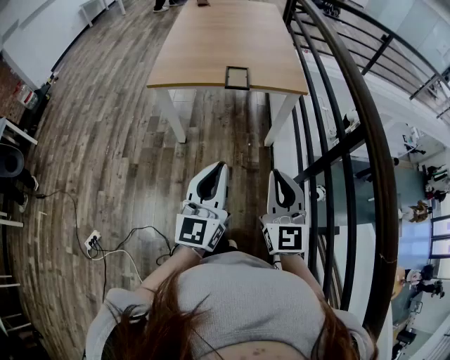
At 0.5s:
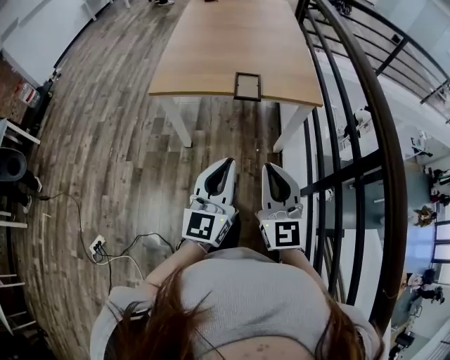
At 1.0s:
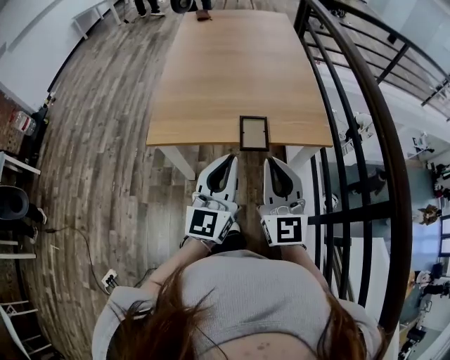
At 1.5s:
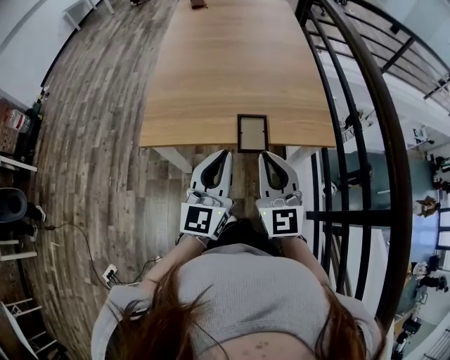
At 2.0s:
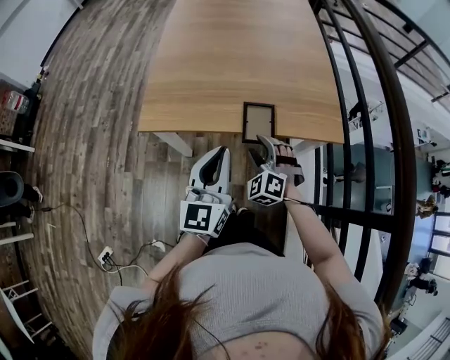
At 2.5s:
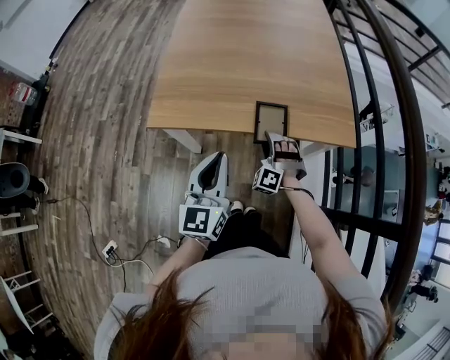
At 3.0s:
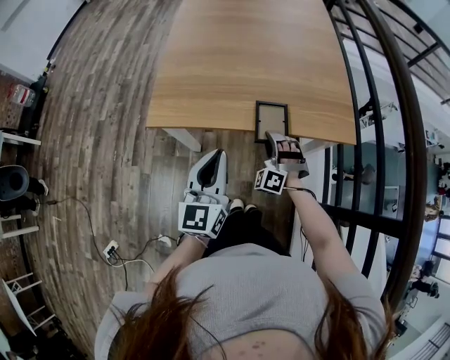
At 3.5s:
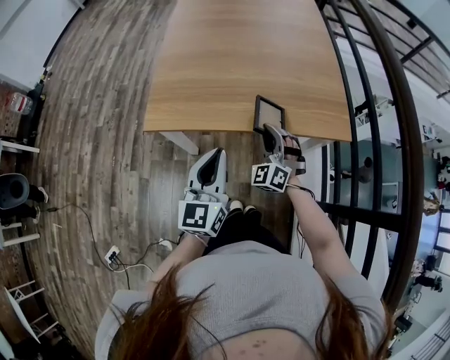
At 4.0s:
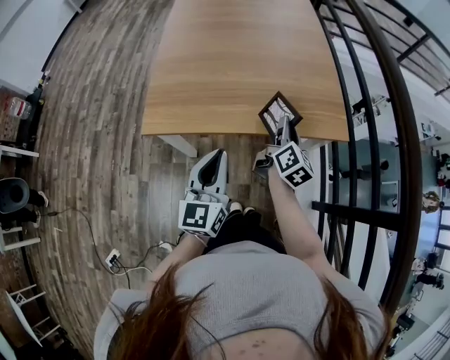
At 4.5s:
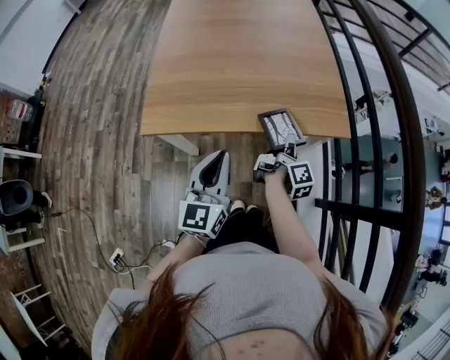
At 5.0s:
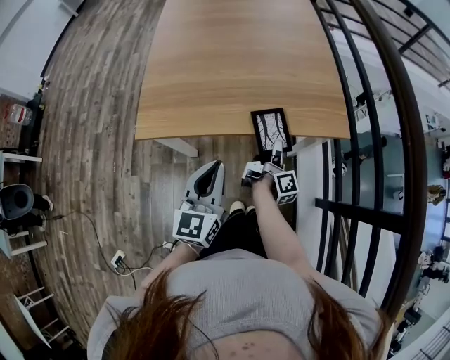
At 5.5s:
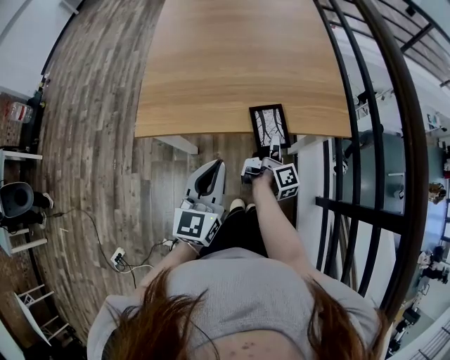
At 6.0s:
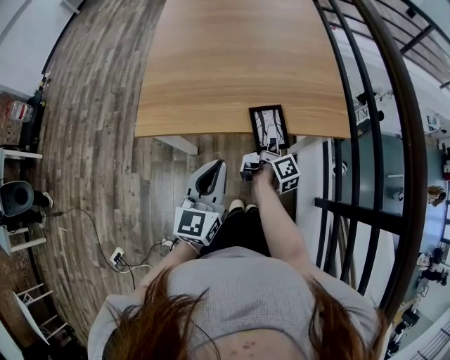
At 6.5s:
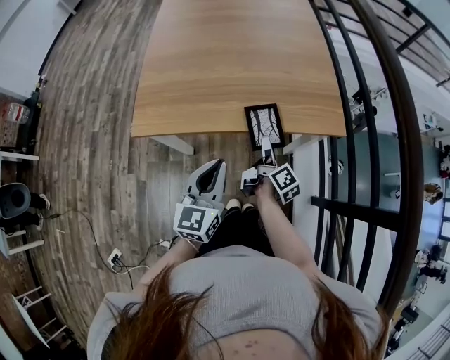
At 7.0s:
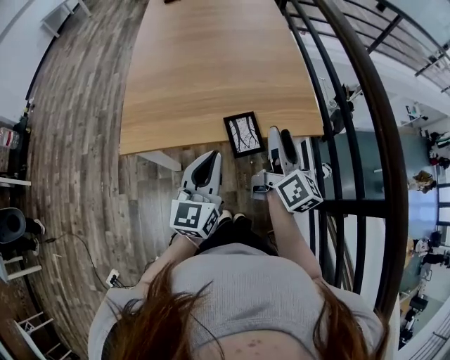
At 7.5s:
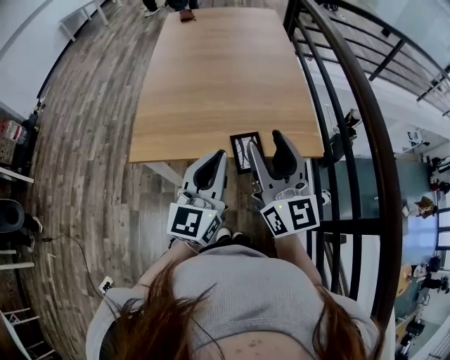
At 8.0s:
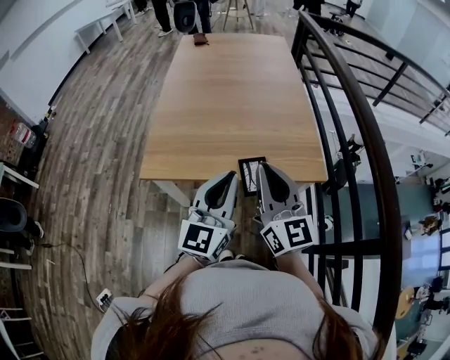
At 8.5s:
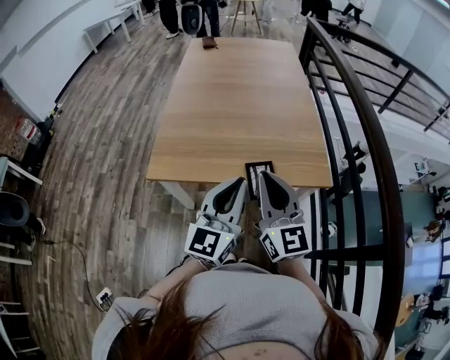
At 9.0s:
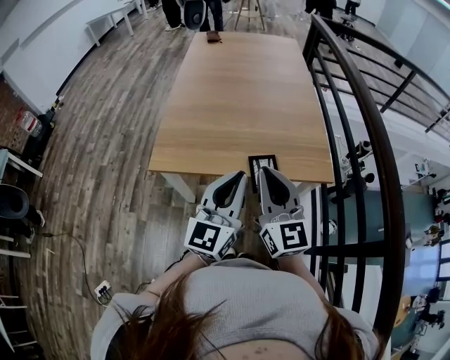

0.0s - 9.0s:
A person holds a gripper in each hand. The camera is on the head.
0.0s - 2.0s: The two grippers travel together, forward, roughly 40 cm. The right gripper shifts some 20 cm downward, angles its fingers downward, by approximately 40 degrees, and opens up.
2.0s - 4.5s: The right gripper swings up and down, some 15 cm each way, with 2 reversals, rolls clockwise, seen from behind, by approximately 150 degrees, and closes.
4.5s - 7.0s: The left gripper shifts some 5 cm to the right, while the right gripper moves upward, approximately 15 cm, rotates about 40 degrees, and opens its fingers.
7.0s - 9.0s: The left gripper shifts about 10 cm upward, while the right gripper is displaced to the left, upward and backward by roughly 20 cm, rotates around the line of its fingers by roughly 40 degrees, counterclockwise from behind, and closes up.

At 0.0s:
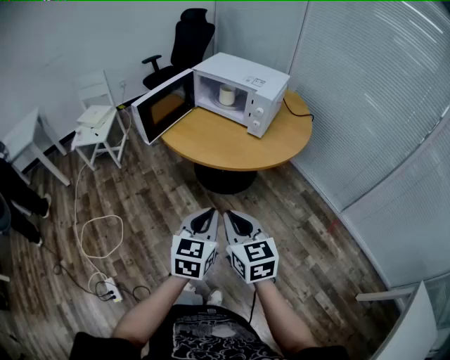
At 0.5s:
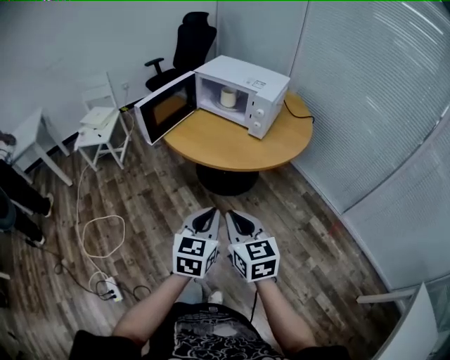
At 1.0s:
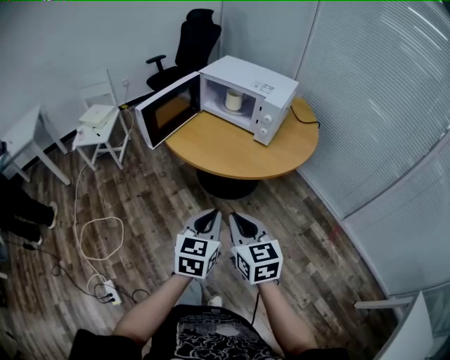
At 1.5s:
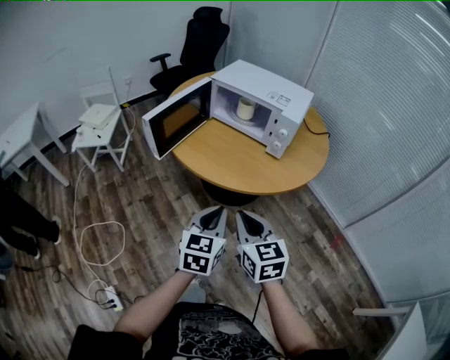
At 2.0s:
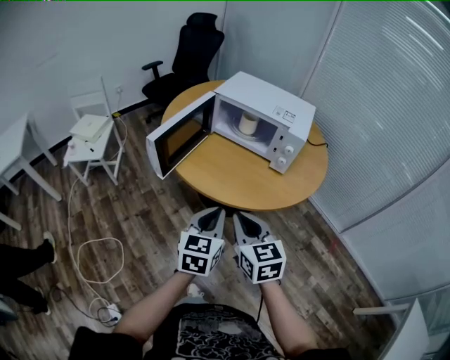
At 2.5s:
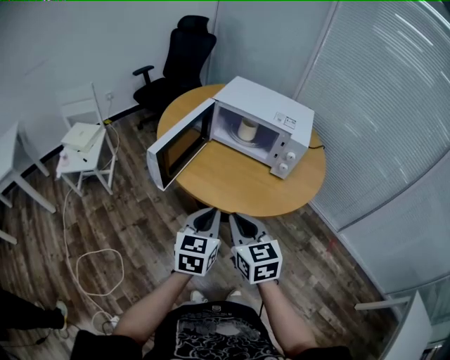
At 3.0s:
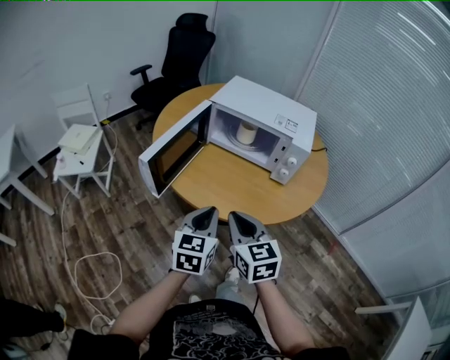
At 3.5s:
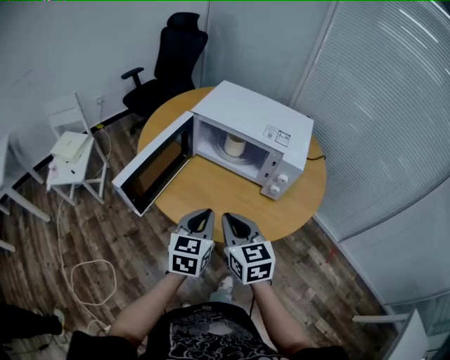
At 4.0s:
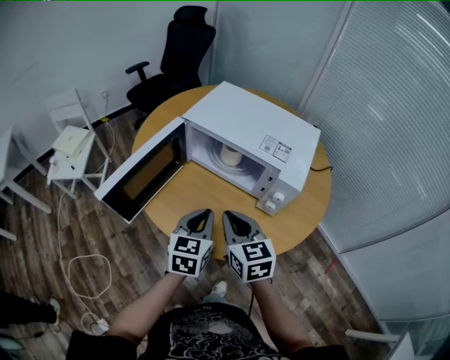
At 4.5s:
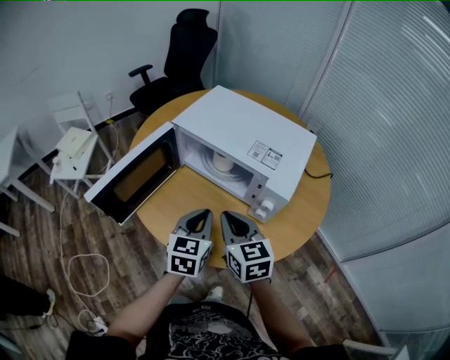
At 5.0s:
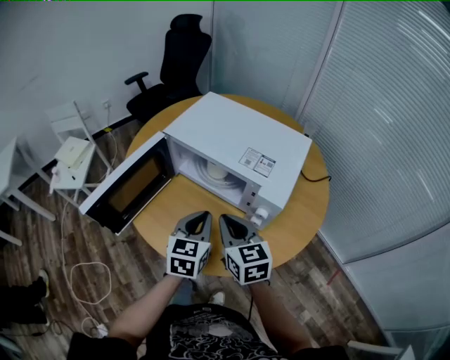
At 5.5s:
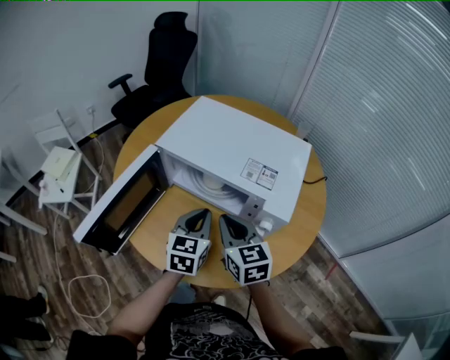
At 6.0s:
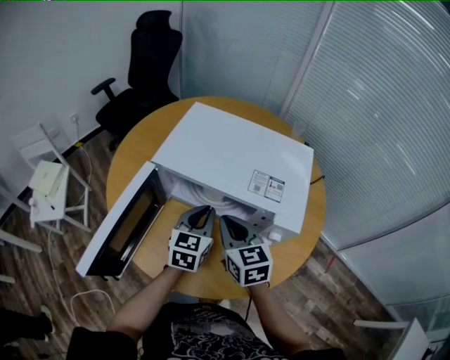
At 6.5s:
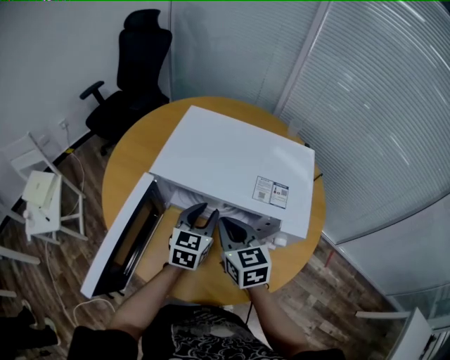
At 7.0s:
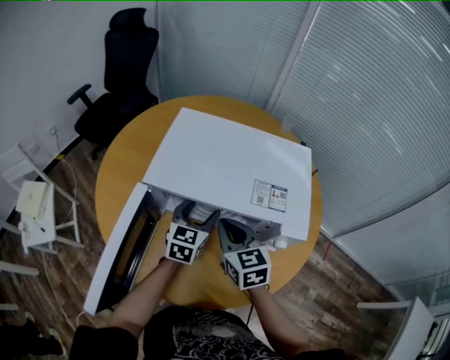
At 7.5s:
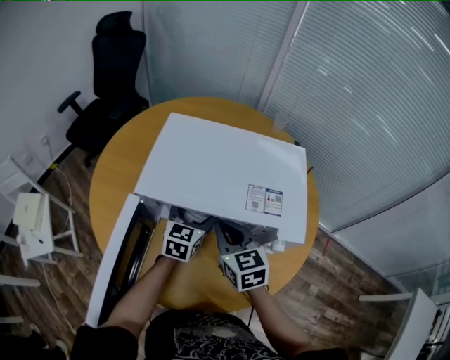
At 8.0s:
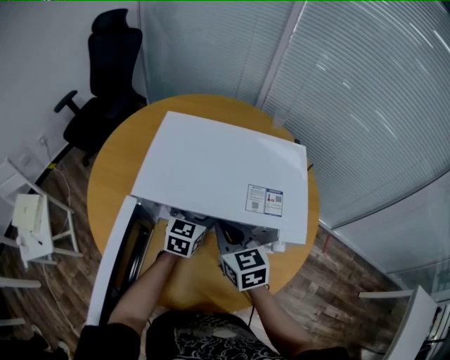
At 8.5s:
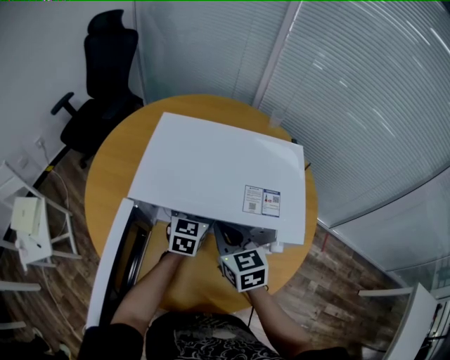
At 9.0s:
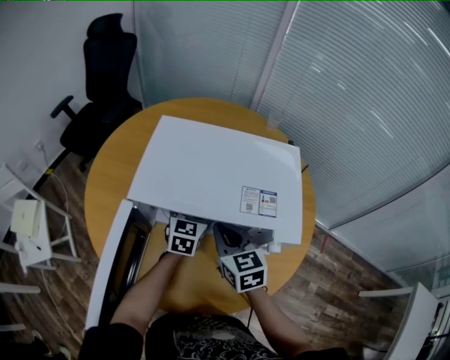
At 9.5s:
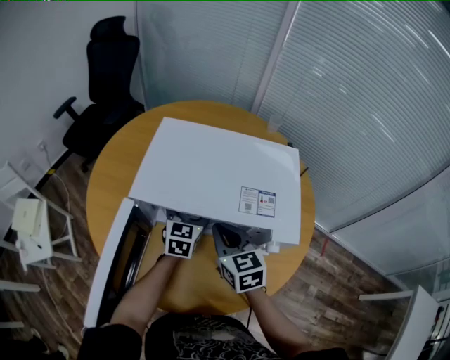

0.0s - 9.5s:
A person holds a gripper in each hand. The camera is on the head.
0.0s - 2.0s: Both grippers move forward and to the left, about 20 cm.
2.0s - 4.0s: Both grippers travel together forward, roughly 25 cm.
4.0s - 5.5s: The right gripper heads forward, covering about 10 cm. The left gripper travels forward and to the right by approximately 10 cm.
5.5s - 7.5s: The right gripper is displaced forward by some 10 cm. The left gripper goes roughly 15 cm forward, turns by about 20 degrees, and opens up.
7.5s - 9.5s: There are only small adjustments of the grippers.

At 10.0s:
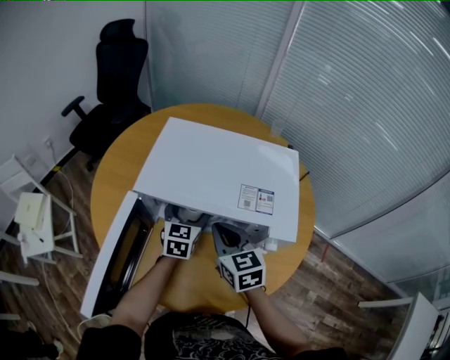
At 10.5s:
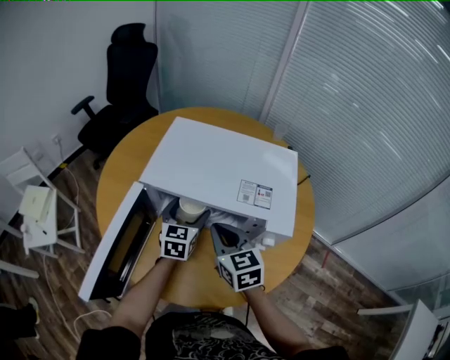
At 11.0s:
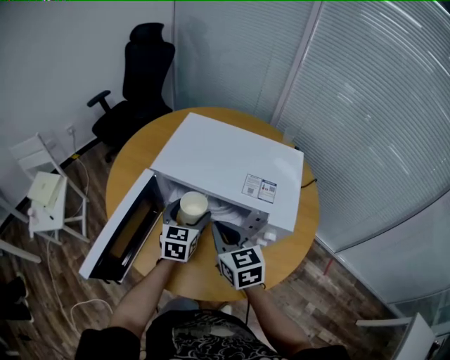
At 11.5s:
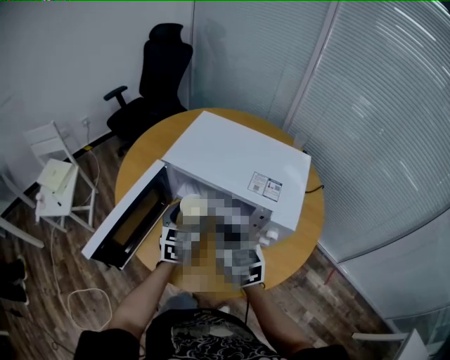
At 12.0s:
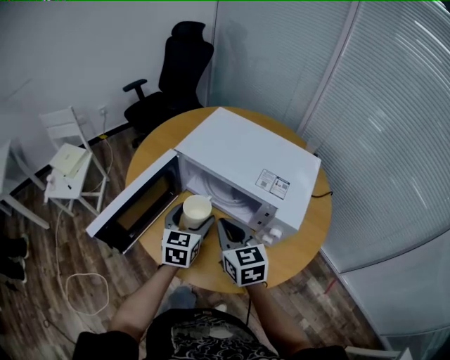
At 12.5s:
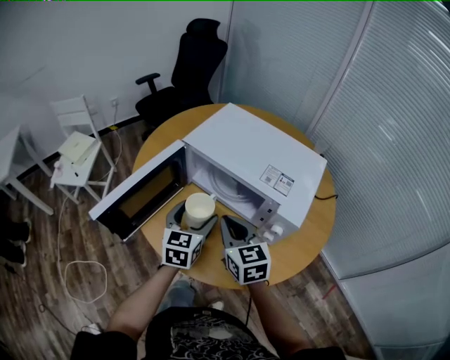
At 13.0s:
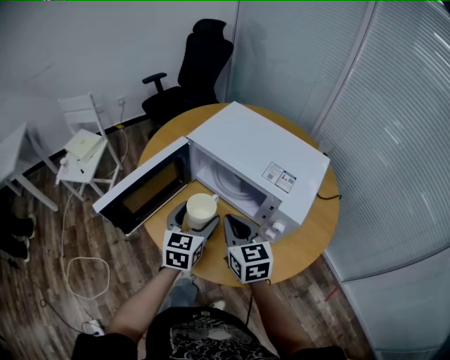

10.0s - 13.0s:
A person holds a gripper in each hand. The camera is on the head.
10.0s - 11.5s: The left gripper heads backward and to the left, covering some 10 cm; the right gripper moves backward, about 5 cm.
11.5s - 13.0s: The left gripper moves backward, roughly 10 cm.

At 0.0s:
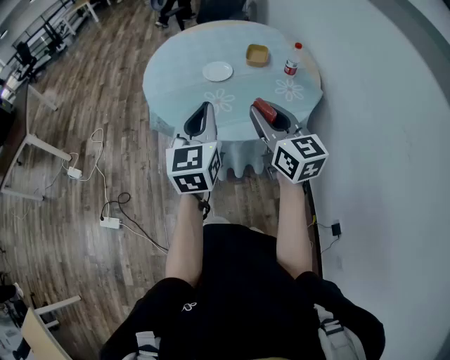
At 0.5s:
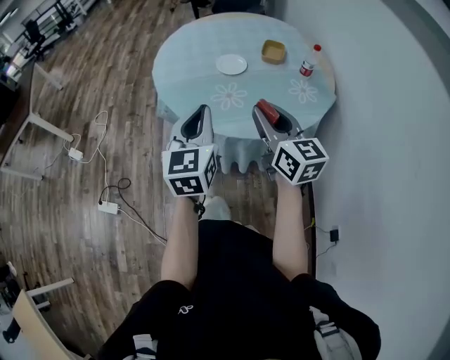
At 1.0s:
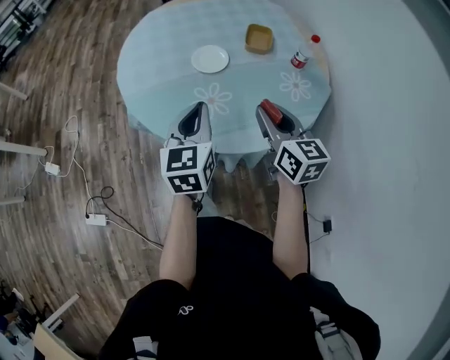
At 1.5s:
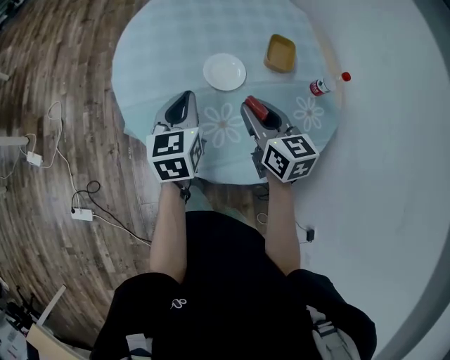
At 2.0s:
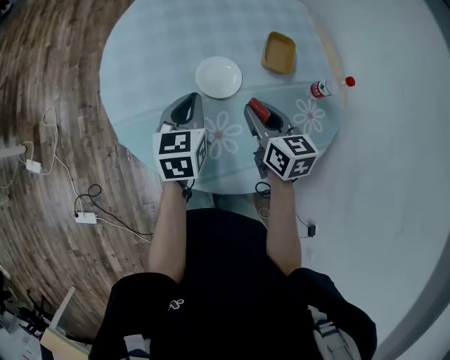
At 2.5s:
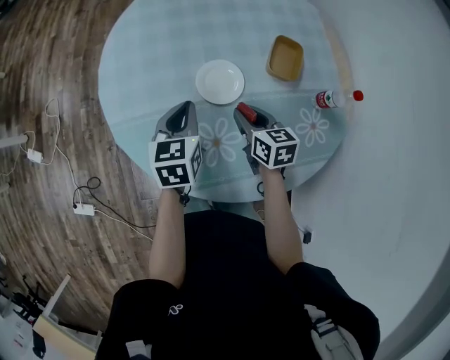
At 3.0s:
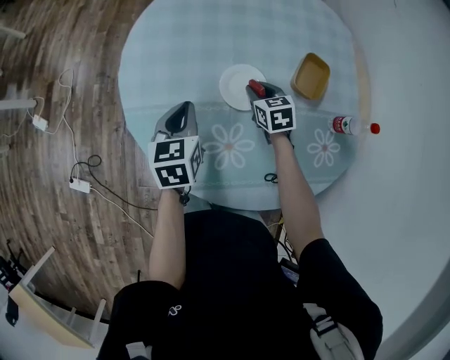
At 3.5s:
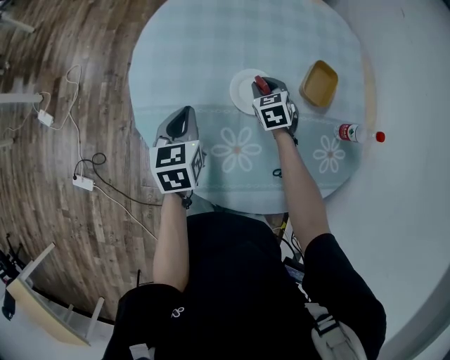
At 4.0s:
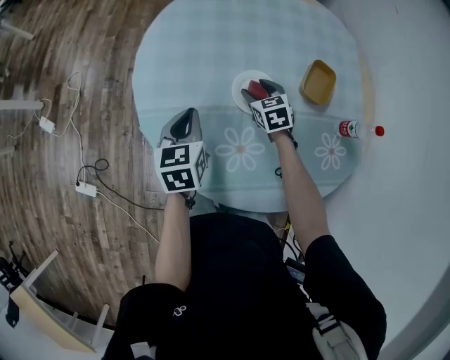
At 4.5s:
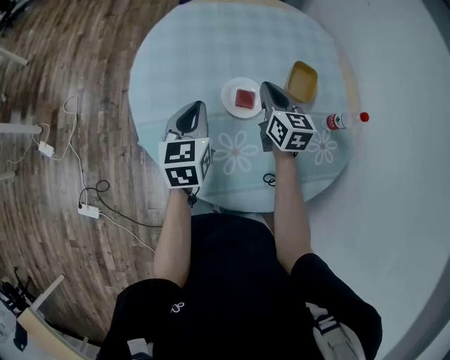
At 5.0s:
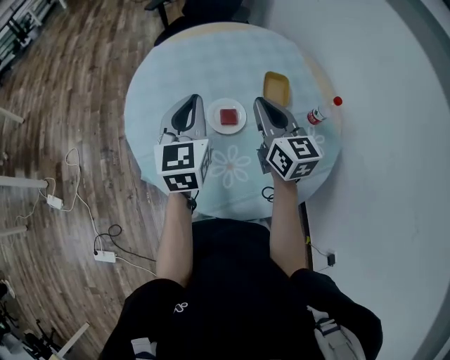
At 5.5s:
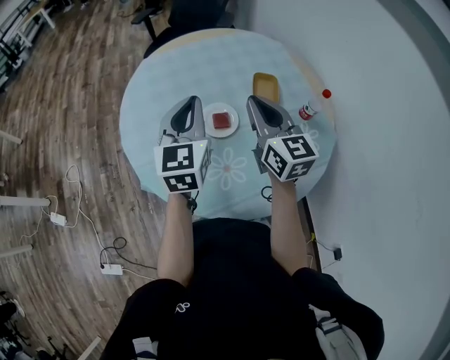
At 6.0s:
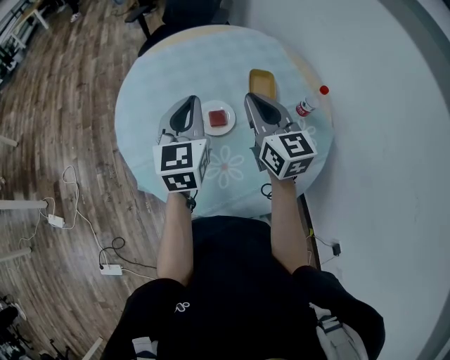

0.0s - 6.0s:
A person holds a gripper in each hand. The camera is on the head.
0.0s - 2.0s: Both grippers travel together forward and downward, approximately 40 cm. The left gripper swivels about 30 degrees. The right gripper turns by about 30 degrees.
2.0s - 4.0s: The left gripper travels to the left by about 10 cm; the right gripper travels downward and forward by about 20 cm, swivels roughly 30 degrees, and opens.
4.0s - 6.0s: The left gripper heads upward and to the right, covering some 20 cm, and swivels about 40 degrees, while the right gripper heads upward, covering roughly 30 cm, tips its fingers upward by about 40 degrees, and closes up.
